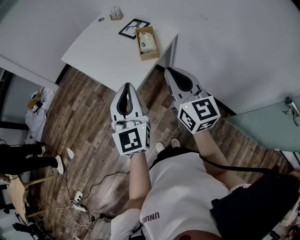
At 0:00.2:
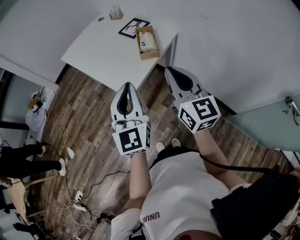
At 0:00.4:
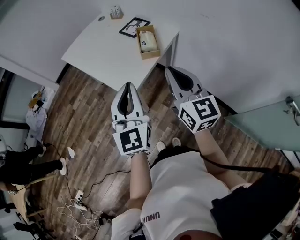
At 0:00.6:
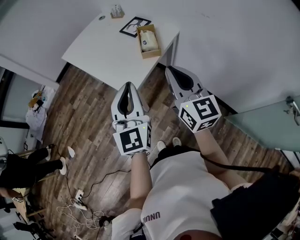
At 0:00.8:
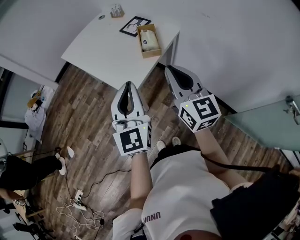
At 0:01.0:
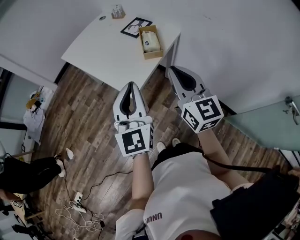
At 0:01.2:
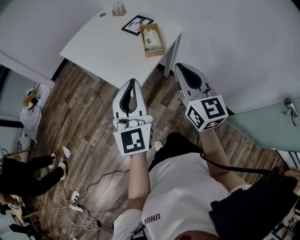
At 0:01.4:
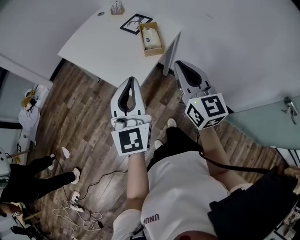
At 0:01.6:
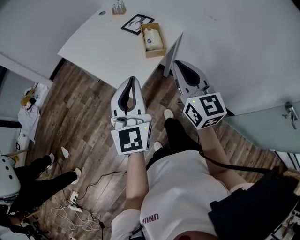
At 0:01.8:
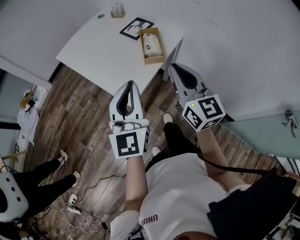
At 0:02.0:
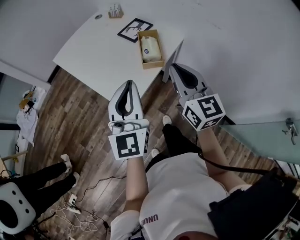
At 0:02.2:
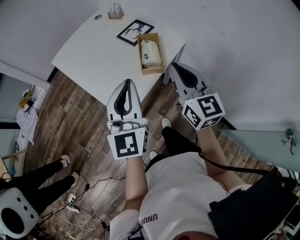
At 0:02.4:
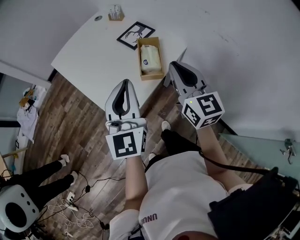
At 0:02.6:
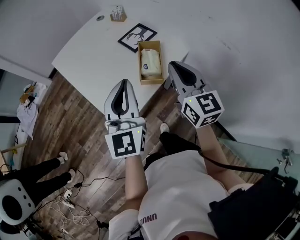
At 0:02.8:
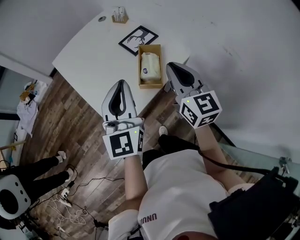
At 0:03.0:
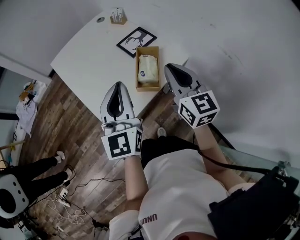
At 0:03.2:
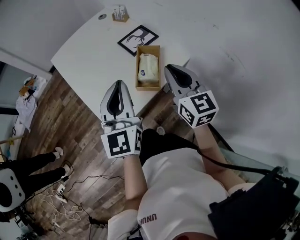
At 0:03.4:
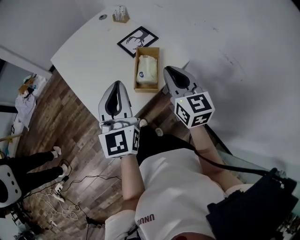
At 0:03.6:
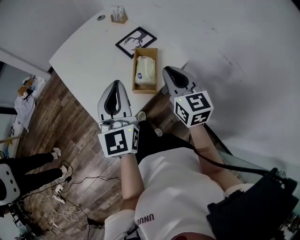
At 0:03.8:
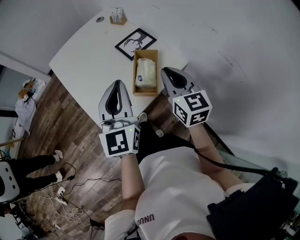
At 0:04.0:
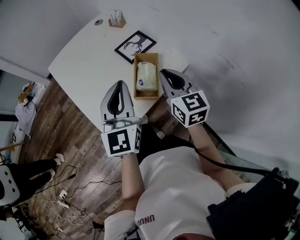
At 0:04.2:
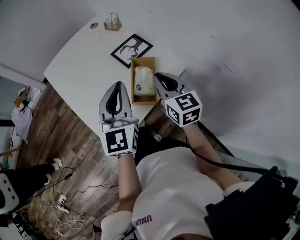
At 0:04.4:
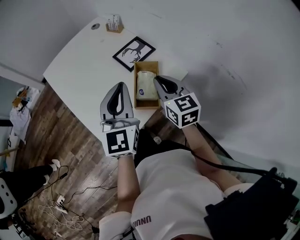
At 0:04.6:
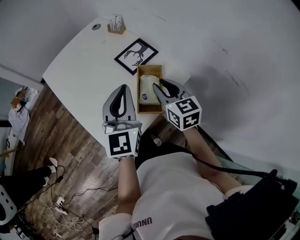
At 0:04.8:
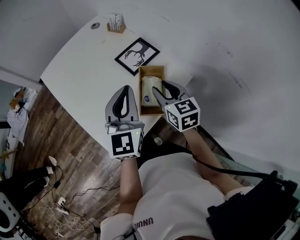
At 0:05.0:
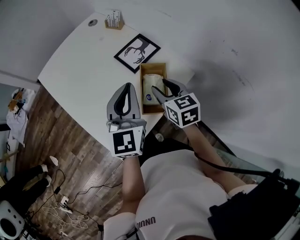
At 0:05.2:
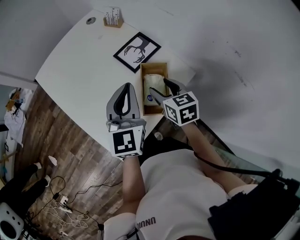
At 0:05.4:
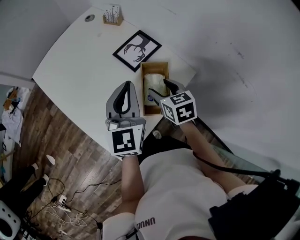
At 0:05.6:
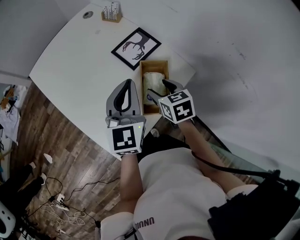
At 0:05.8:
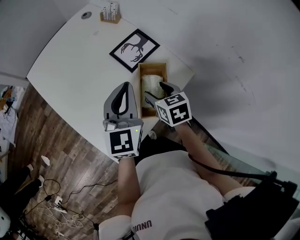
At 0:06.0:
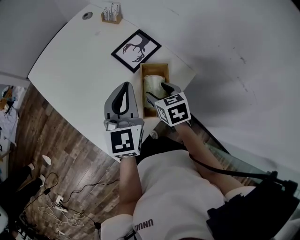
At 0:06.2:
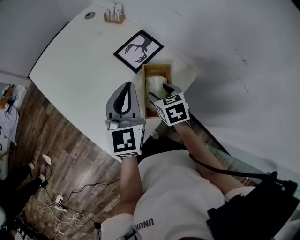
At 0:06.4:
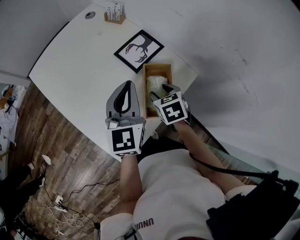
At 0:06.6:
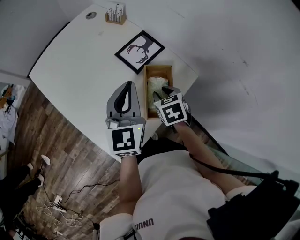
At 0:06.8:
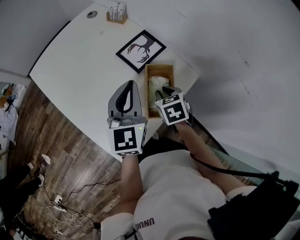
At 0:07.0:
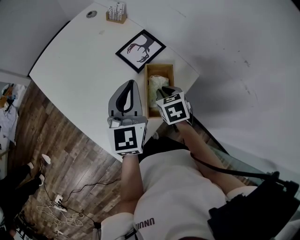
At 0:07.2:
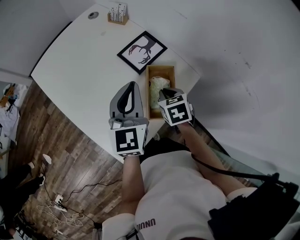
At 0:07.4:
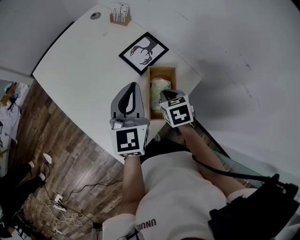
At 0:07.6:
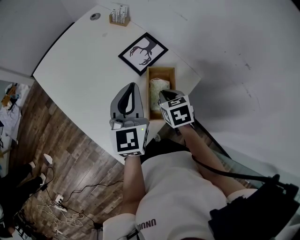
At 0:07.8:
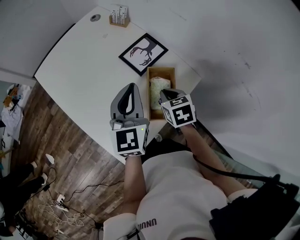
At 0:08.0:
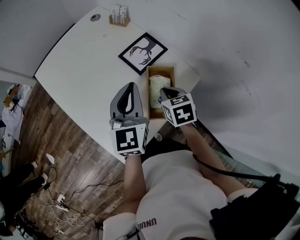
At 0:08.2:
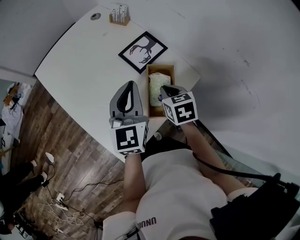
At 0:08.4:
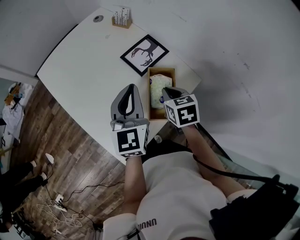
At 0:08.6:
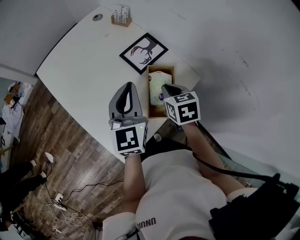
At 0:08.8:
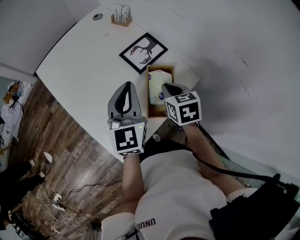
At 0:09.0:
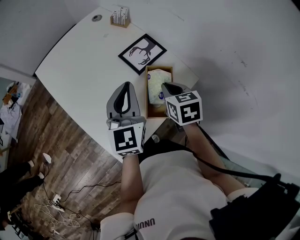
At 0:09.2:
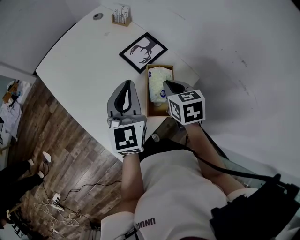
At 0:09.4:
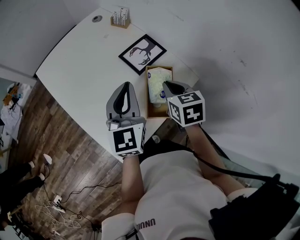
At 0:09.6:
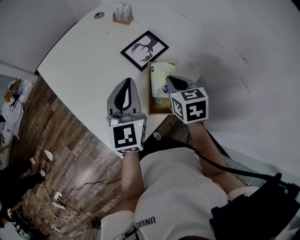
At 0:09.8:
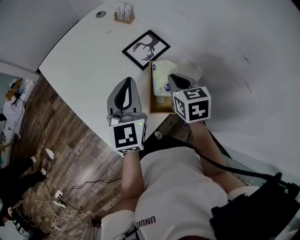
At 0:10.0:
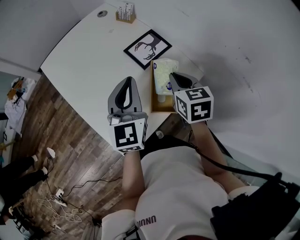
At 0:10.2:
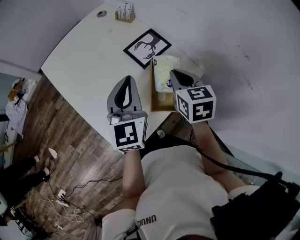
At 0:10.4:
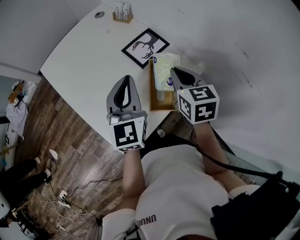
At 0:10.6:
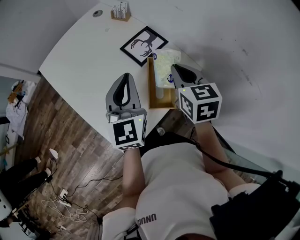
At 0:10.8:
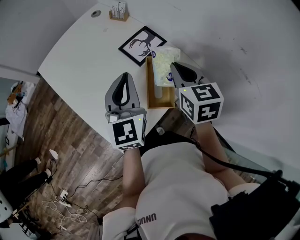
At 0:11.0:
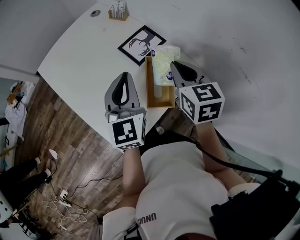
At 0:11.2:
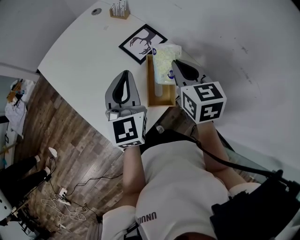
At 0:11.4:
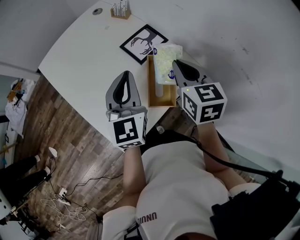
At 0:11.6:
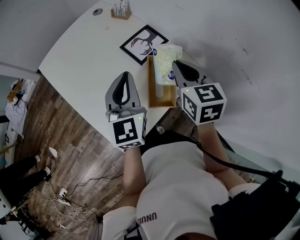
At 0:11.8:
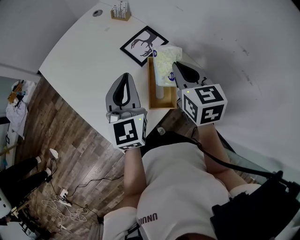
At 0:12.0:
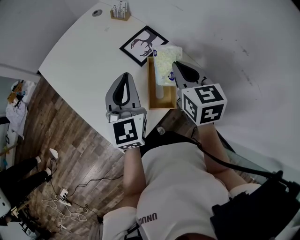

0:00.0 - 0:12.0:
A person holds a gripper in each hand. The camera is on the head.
0:00.0 - 0:01.6: The grippers make only small movements.
0:01.6 - 0:03.0: Both grippers travel together forward, approximately 20 cm.
0:03.0 - 0:04.4: The left gripper shifts approximately 10 cm forward. Meanwhile the right gripper is displaced forward and downward by roughly 10 cm.
0:04.4 - 0:06.0: The left gripper moves forward and downward, some 10 cm. Meanwhile the right gripper shifts roughly 15 cm downward, tips its fingers downward by some 30 degrees, and opens its fingers.
0:06.0 - 0:07.6: The right gripper closes its fingers.
0:07.6 - 0:09.0: The right gripper moves upward, approximately 5 cm.
0:09.0 - 0:10.4: The right gripper heads upward, covering approximately 5 cm.
0:10.4 - 0:12.0: The grippers make only small movements.

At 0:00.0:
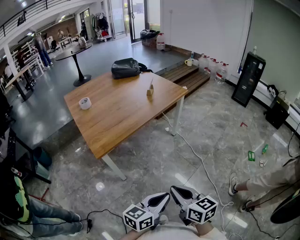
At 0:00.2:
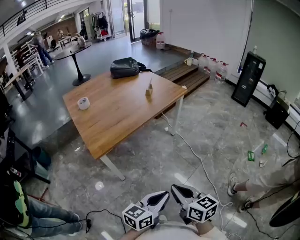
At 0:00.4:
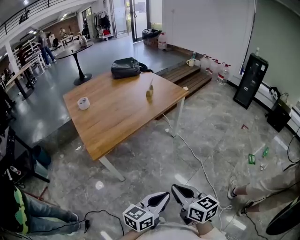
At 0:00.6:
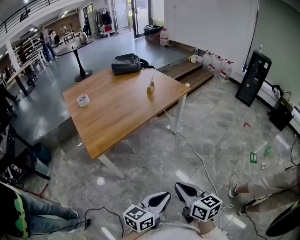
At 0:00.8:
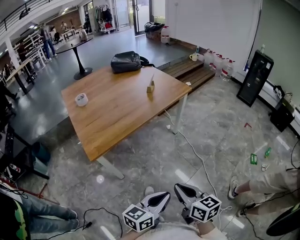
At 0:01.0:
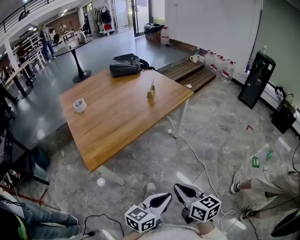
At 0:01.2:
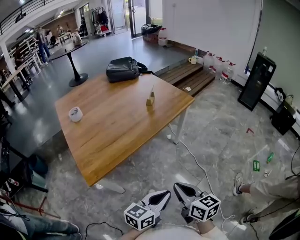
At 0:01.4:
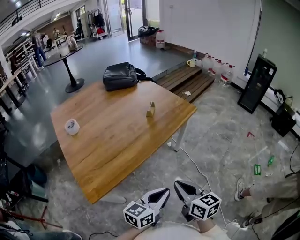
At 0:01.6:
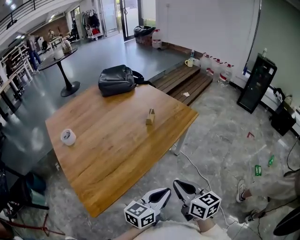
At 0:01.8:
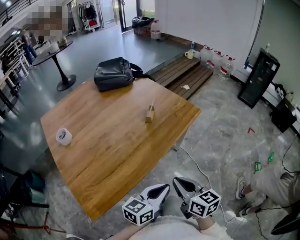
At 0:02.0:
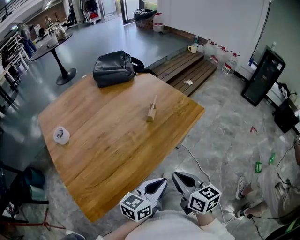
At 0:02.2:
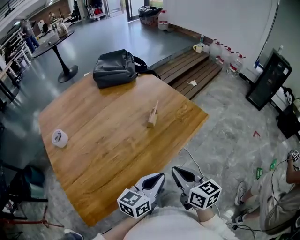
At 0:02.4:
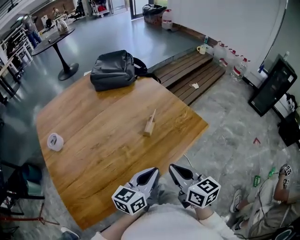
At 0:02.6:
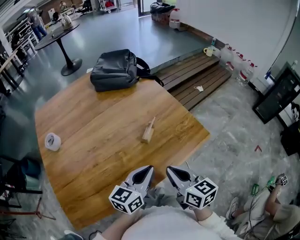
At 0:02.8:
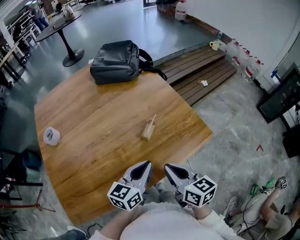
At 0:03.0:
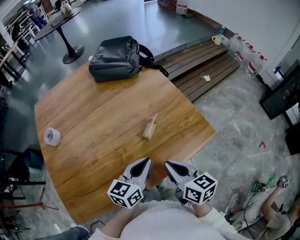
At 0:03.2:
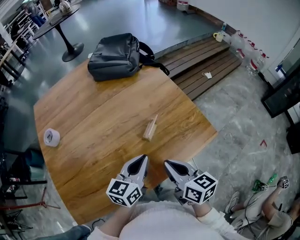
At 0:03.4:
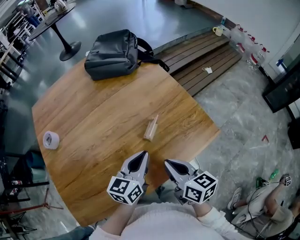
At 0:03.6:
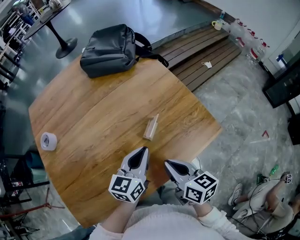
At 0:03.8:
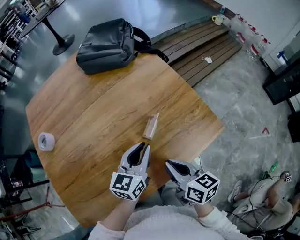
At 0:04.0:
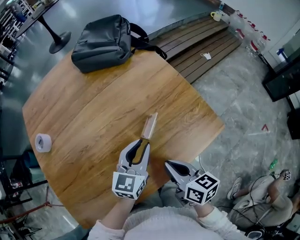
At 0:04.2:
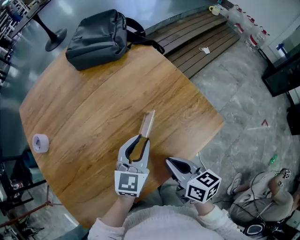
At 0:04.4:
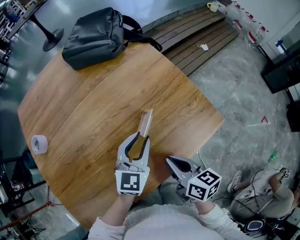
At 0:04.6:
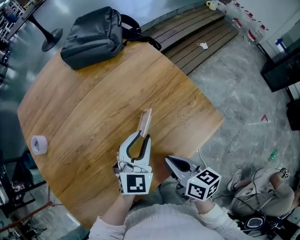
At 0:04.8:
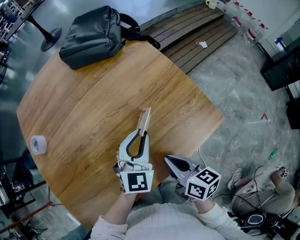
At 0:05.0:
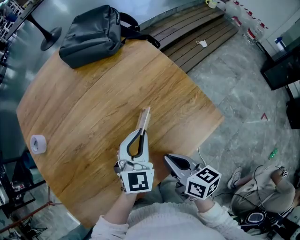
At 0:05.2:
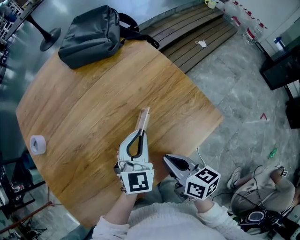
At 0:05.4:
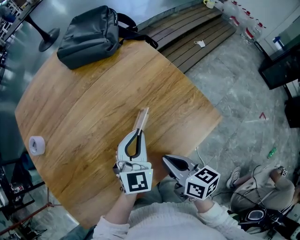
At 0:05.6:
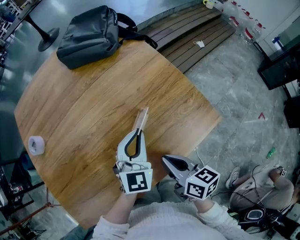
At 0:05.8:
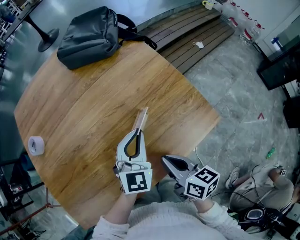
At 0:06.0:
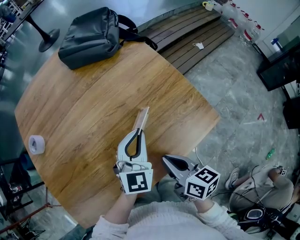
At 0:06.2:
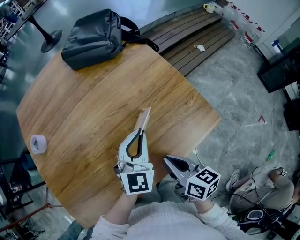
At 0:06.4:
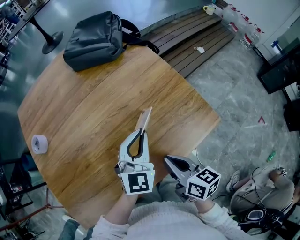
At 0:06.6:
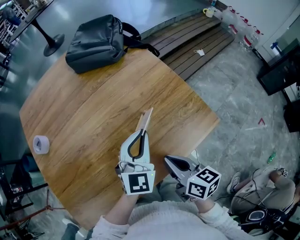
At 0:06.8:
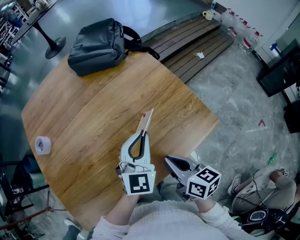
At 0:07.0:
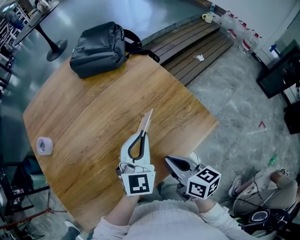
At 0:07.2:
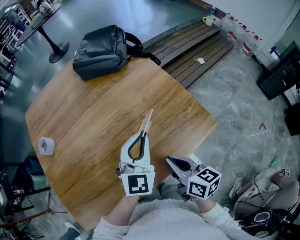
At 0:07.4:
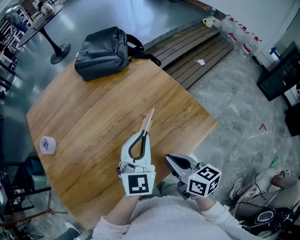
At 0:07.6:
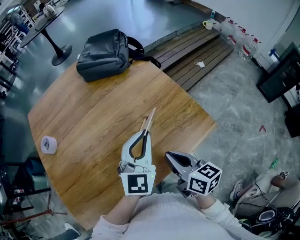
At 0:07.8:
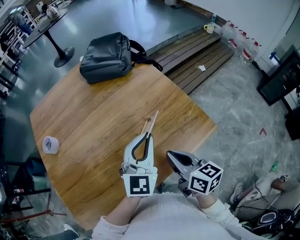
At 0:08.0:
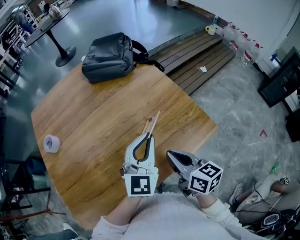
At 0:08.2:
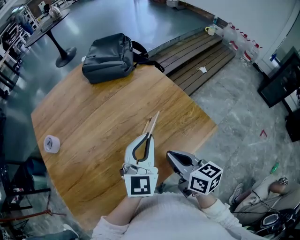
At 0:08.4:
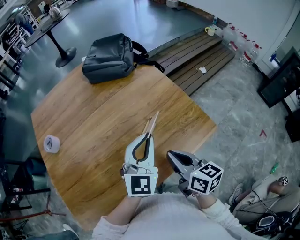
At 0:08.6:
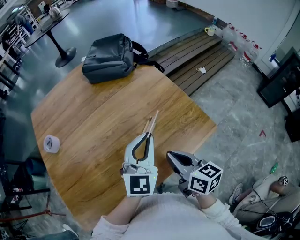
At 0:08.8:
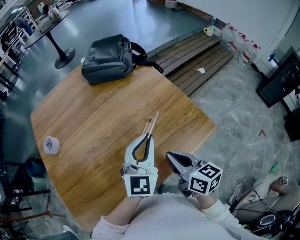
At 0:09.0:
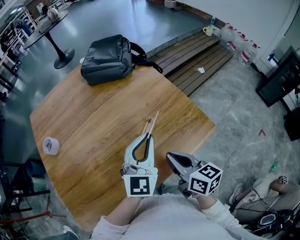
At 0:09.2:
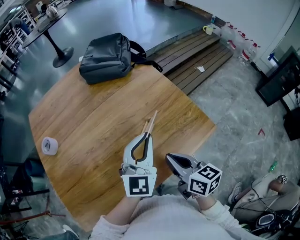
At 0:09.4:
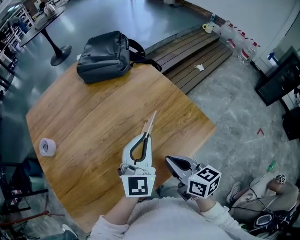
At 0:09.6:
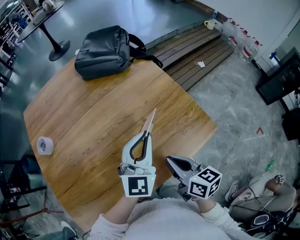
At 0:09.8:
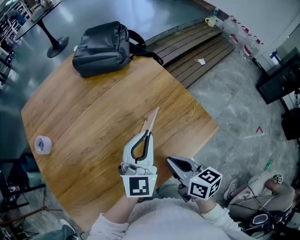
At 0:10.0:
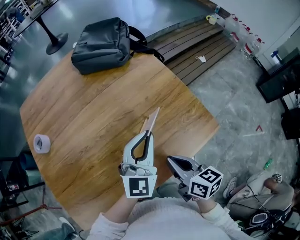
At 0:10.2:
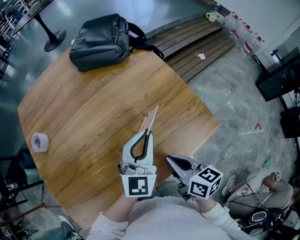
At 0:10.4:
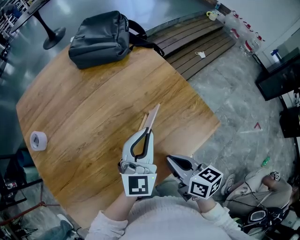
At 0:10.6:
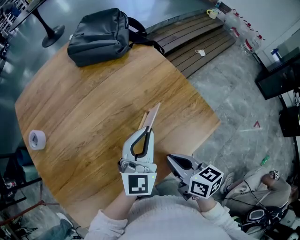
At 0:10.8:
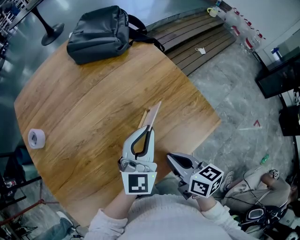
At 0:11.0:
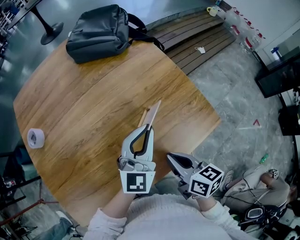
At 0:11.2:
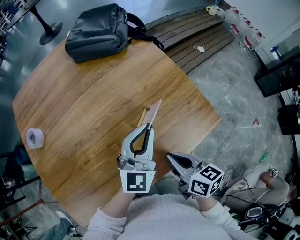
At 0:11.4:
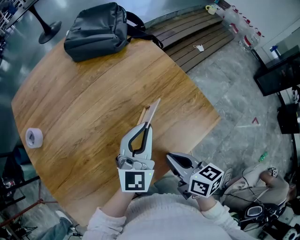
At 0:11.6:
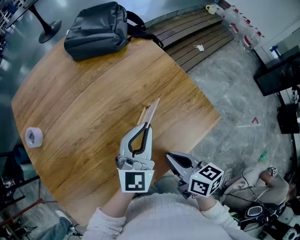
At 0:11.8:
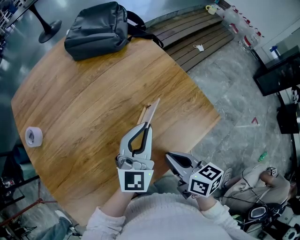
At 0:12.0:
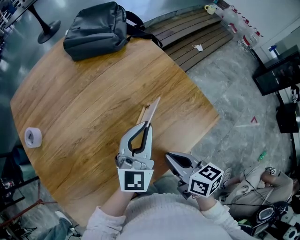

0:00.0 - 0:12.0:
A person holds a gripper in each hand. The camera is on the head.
0:00.0 - 0:01.6: The grippers both shift forward by some 40 cm.
0:01.6 - 0:03.0: The two grippers go roughly 35 cm forward. The left gripper changes its angle by approximately 30 degrees.
0:03.0 - 0:04.4: The left gripper travels forward by roughly 10 cm, changes its angle by about 30 degrees, and opens its fingers. Meanwhile the right gripper goes some 5 cm downward.
0:04.4 - 0:06.0: The grippers stay close to where they were, moving slightly.
0:06.0 - 0:07.6: The left gripper travels upward by about 10 cm, while the right gripper shifts some 5 cm upward.
0:07.6 - 0:09.0: The grippers move only a little.
0:09.0 - 0:10.4: The left gripper changes place by approximately 5 cm. Meanwhile the right gripper is displaced downward by some 5 cm.
0:10.4 - 0:12.0: Both grippers stay about where they are.
